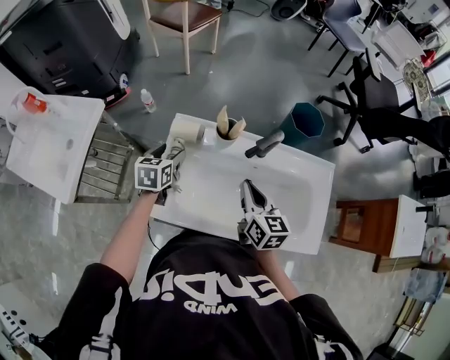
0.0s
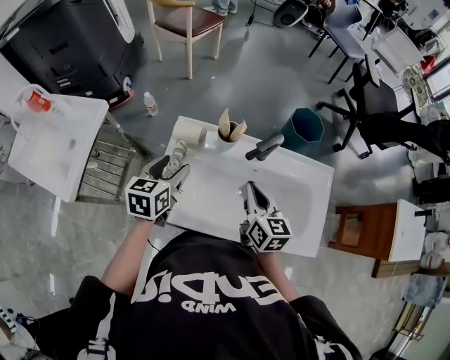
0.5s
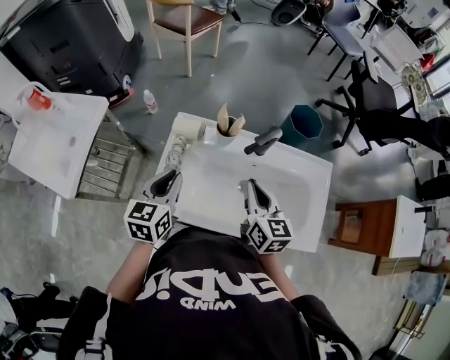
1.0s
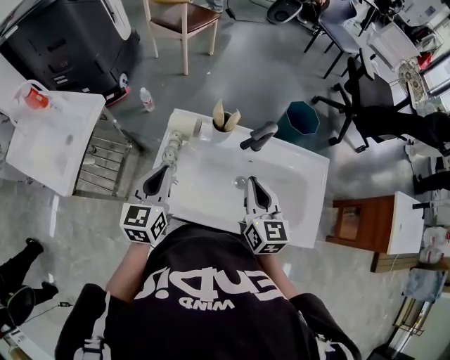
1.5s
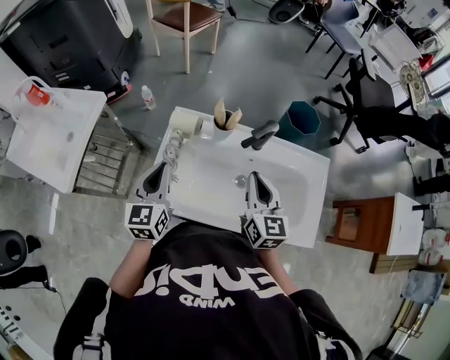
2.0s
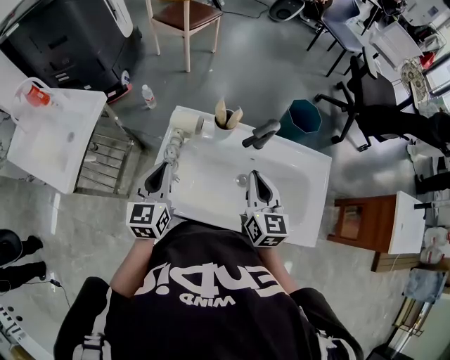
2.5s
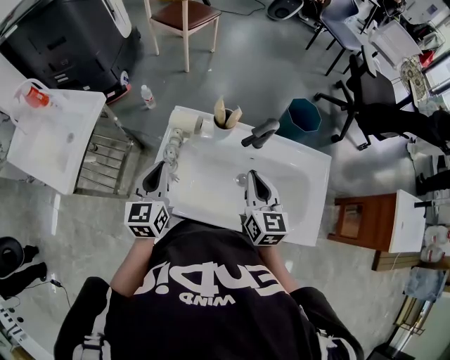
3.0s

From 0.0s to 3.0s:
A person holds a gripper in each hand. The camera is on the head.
From 0.0s to 1.5s: The right gripper shifts by some 5 cm. The left gripper travels upward and backward by about 15 cm, changes its angle by some 20 degrees, and closes its fingers.
From 1.5s to 3.0s: There are only small adjustments of the grippers.

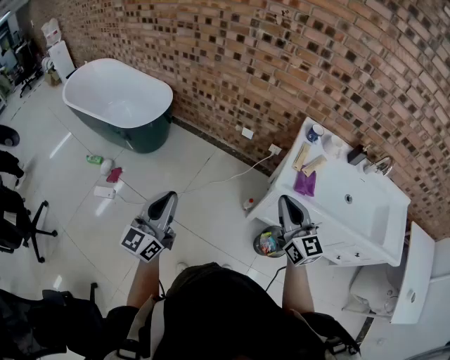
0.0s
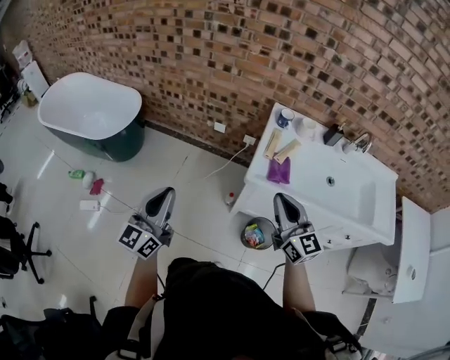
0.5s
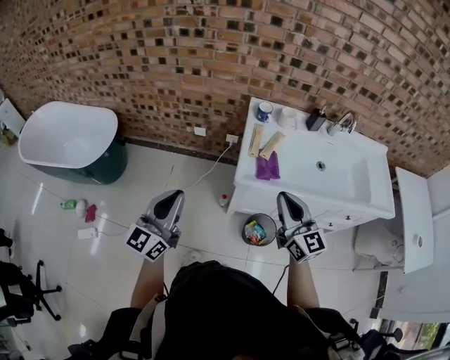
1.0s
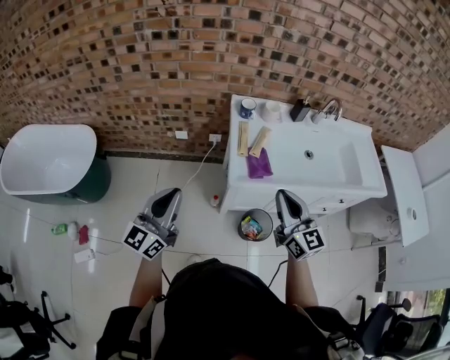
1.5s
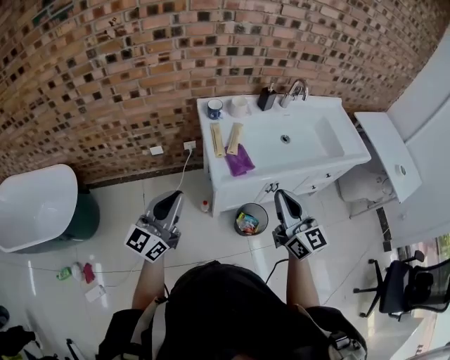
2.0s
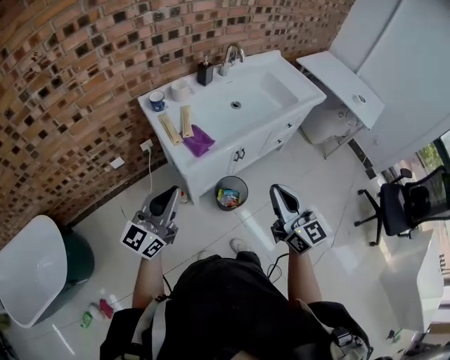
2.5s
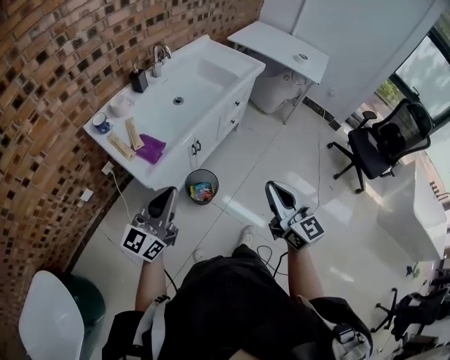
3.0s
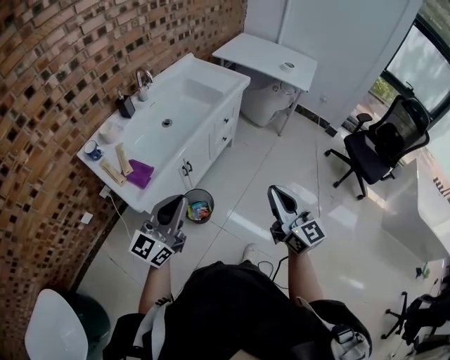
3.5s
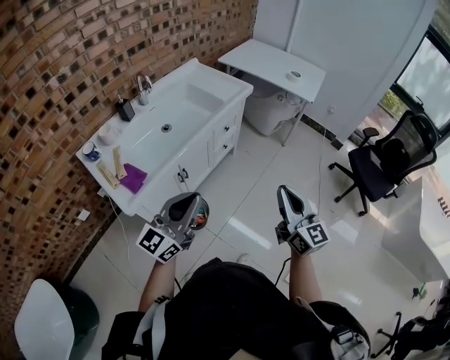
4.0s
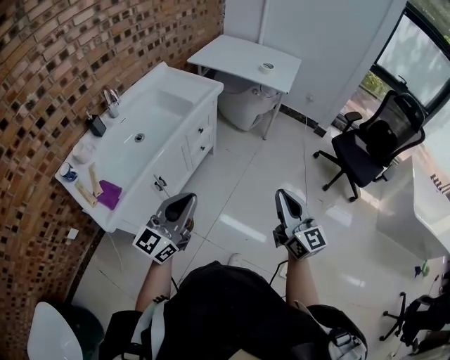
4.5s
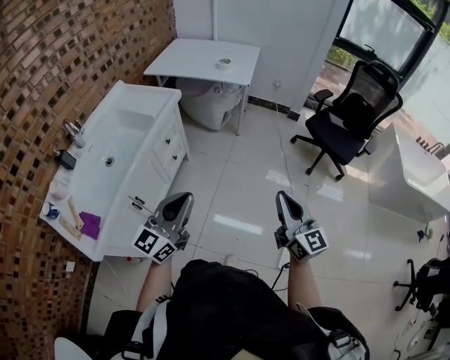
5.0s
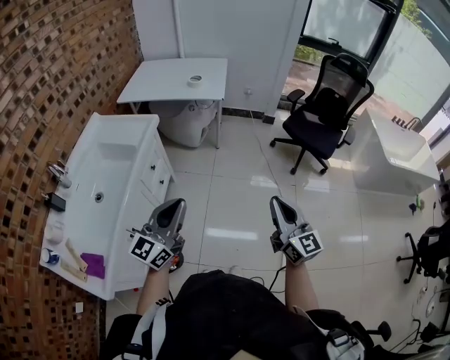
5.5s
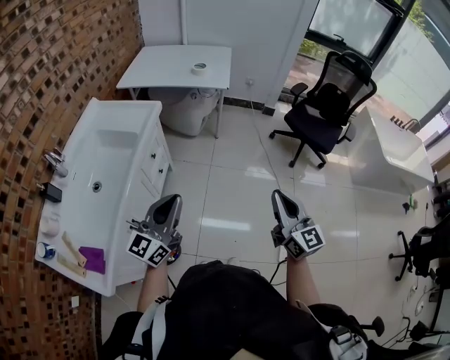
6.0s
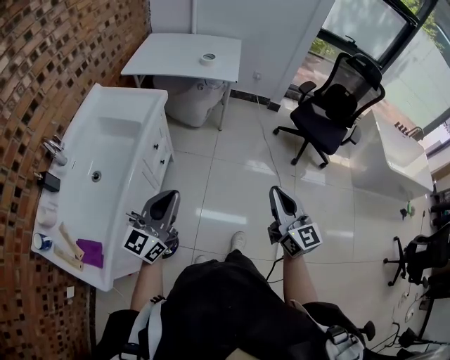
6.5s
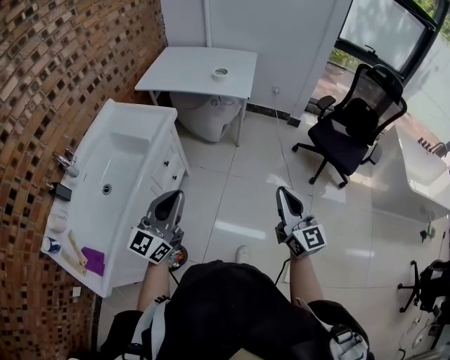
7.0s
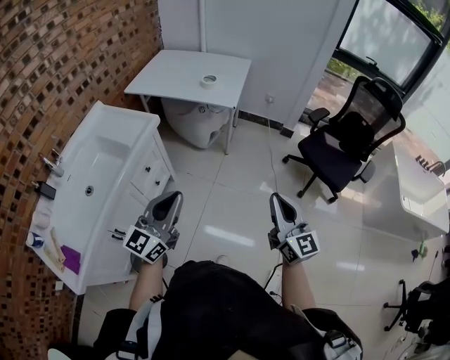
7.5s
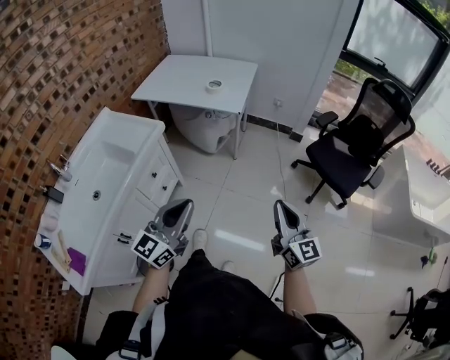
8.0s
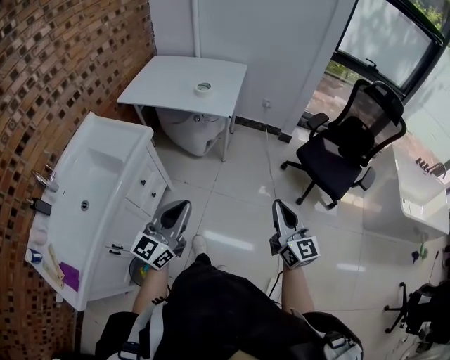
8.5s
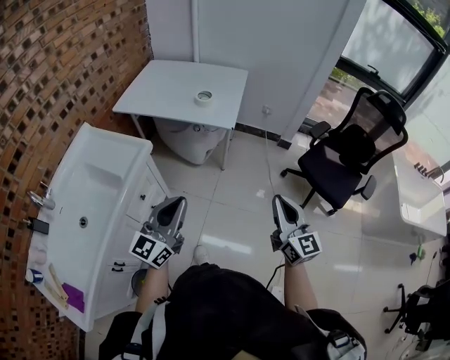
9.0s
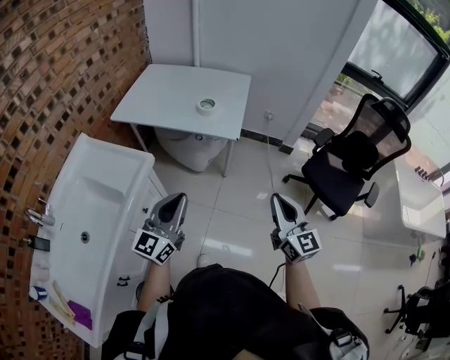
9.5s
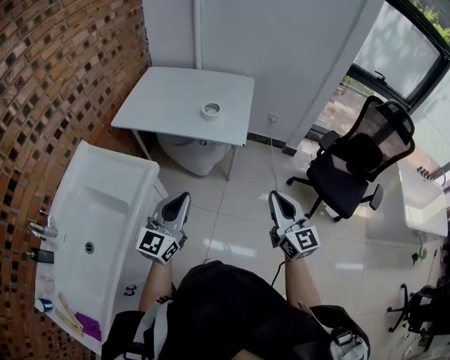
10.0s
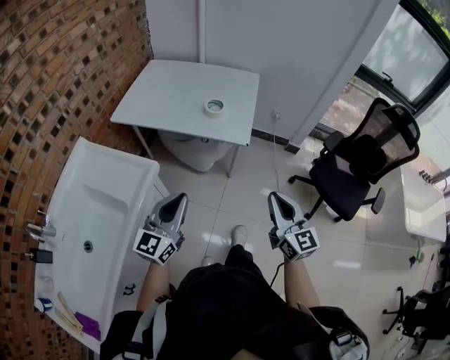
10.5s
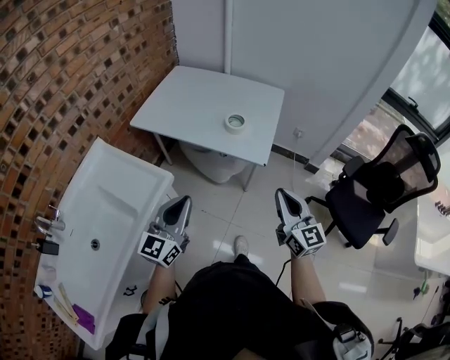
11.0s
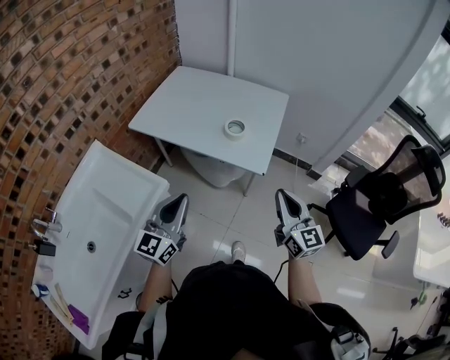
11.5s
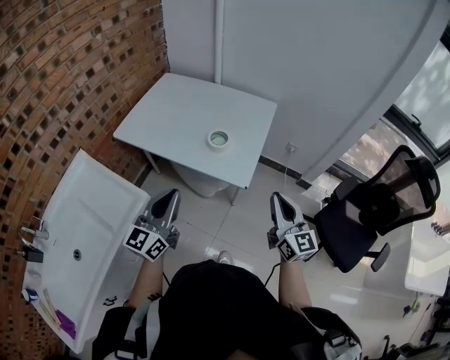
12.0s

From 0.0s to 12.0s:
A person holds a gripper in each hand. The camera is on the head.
From 0.0s to 2.0s: The right gripper moves approximately 15 cm, and swivels about 30 degrees, while the left gripper ends up approximately 25 cm from where it was, and rotates about 40 degrees.
From 2.0s to 4.0s: The left gripper moves approximately 35 cm, and turns by about 50 degrees; the right gripper moves approximately 35 cm, and turns by about 40 degrees.
From 4.0s to 6.0s: The right gripper ends up about 15 cm from where it was, and rotates roughly 30 degrees; the left gripper changes place by roughly 20 cm, and swivels approximately 20 degrees.
From 6.0s to 8.0s: The right gripper goes roughly 25 cm forward and to the right; the left gripper is displaced to the right and forward by some 20 cm.
From 8.0s to 10.0s: Both grippers travel together forward and to the left, about 30 cm.
From 10.0s to 12.0s: Both grippers travel together forward, roughly 20 cm.

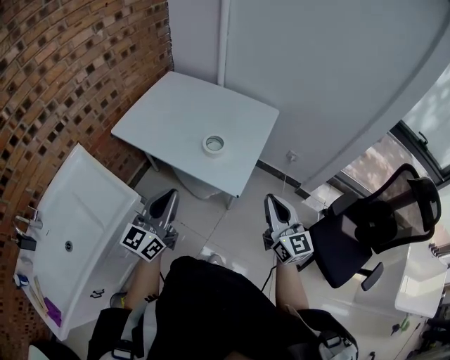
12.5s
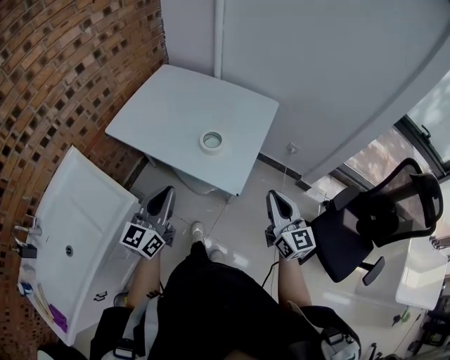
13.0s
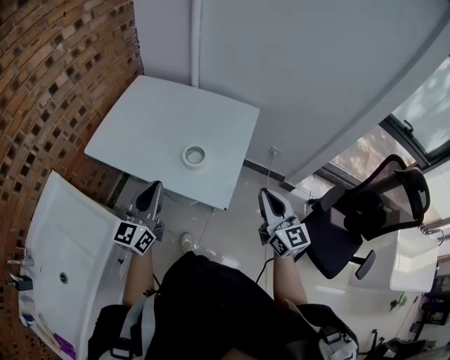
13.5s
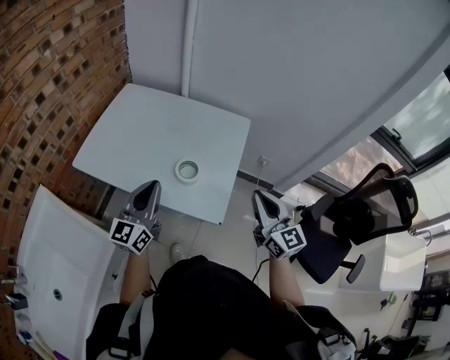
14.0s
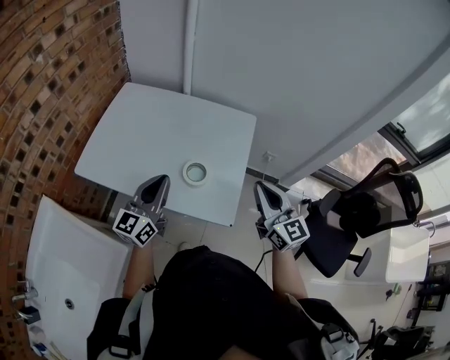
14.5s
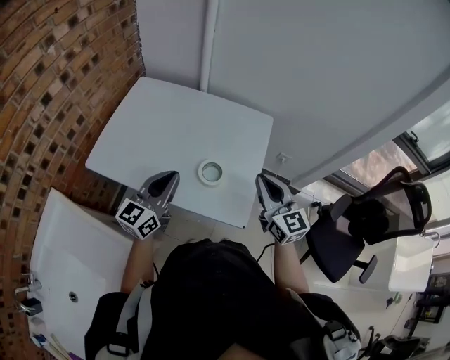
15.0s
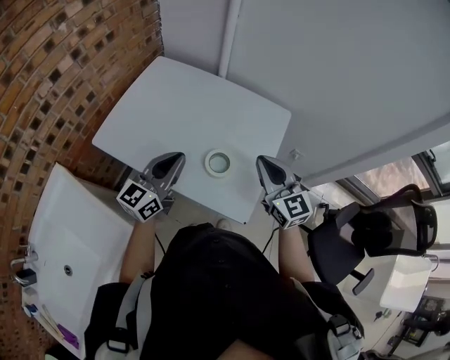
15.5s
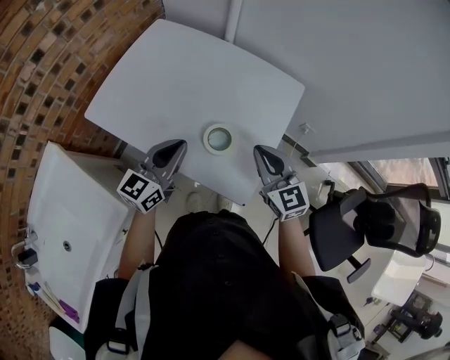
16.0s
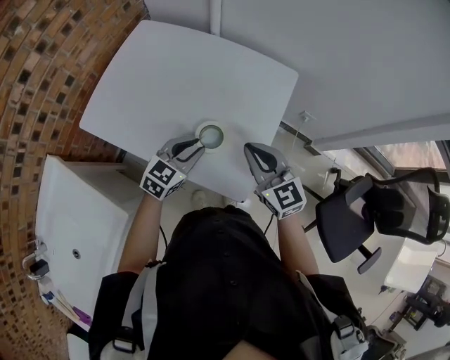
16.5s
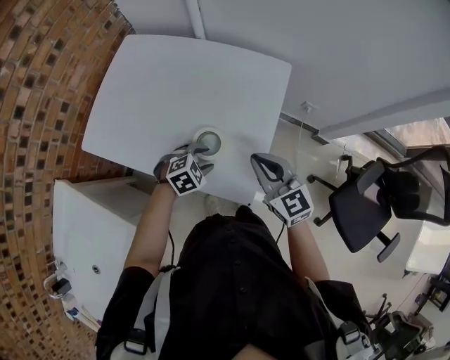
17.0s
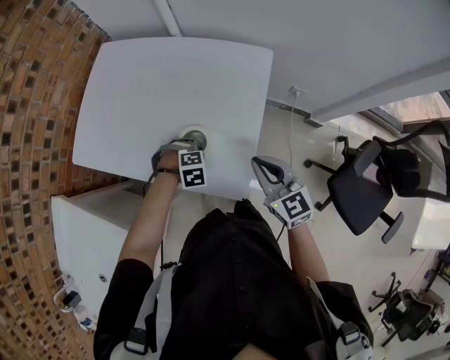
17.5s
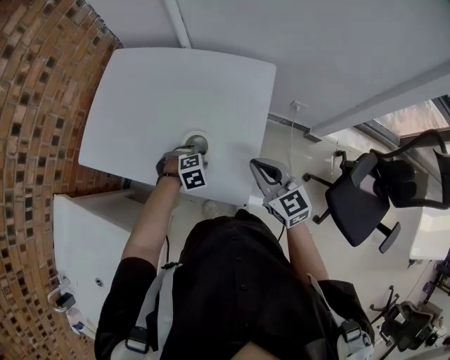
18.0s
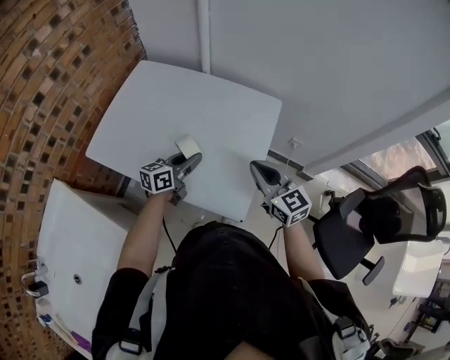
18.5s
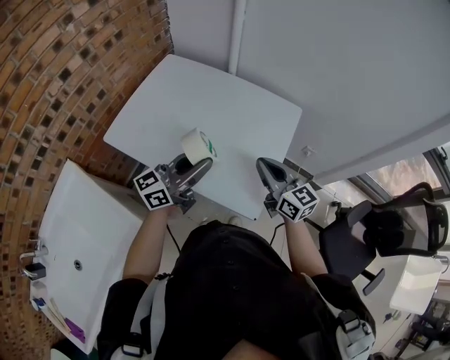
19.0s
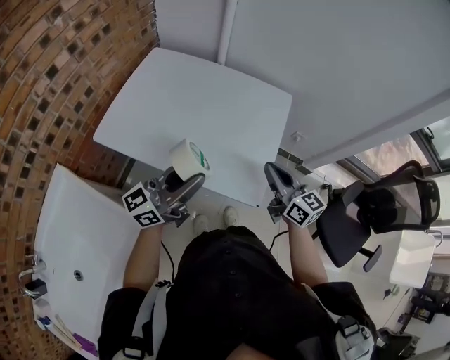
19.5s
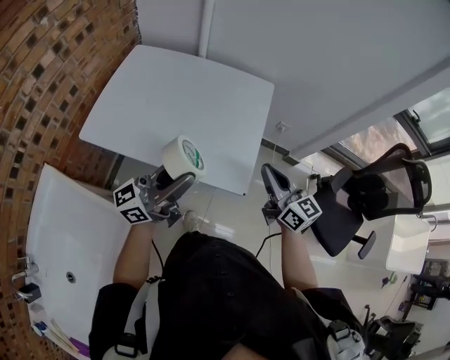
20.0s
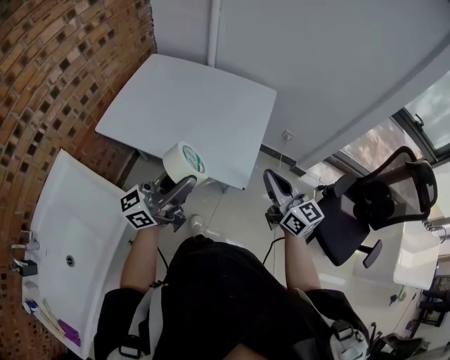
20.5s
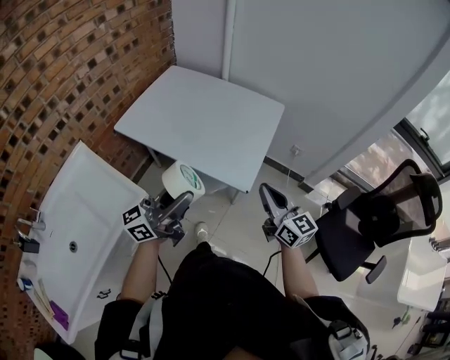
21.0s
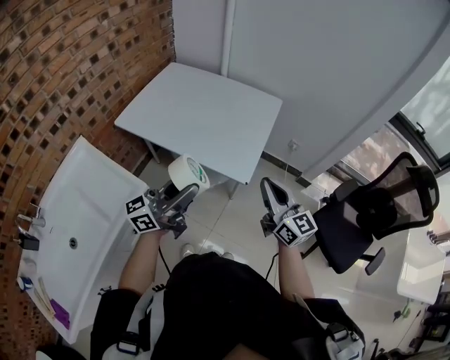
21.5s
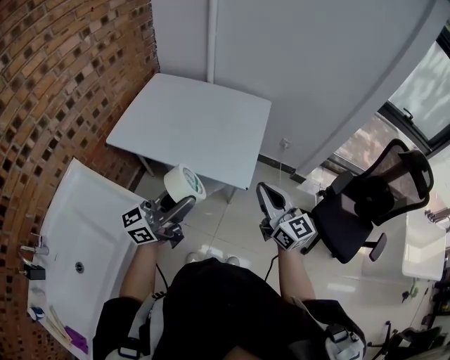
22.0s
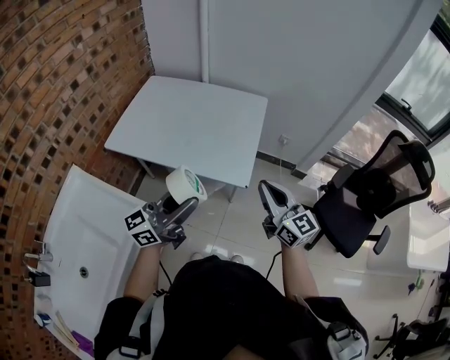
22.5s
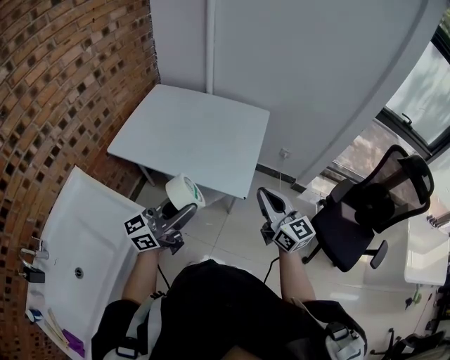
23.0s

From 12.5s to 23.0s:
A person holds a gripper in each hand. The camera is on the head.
From 12.5s to 14.5s: Both grippers travel together forward, roughly 20 cm.
From 14.5s to 16.5s: The right gripper moves downward, forward and to the left, approximately 15 cm, and turns by about 20 degrees. The left gripper is displaced downward and to the right by roughly 15 cm, tilts its fingers some 40 degrees downward, and opens up.
From 16.5s to 19.0s: The left gripper moves upward, approximately 15 cm, points its fingers about 40 degrees further upward, and opens, then closes once more.
From 19.0s to 21.0s: The left gripper is displaced backward by about 25 cm. Meanwhile the right gripper travels backward and to the right by approximately 25 cm.

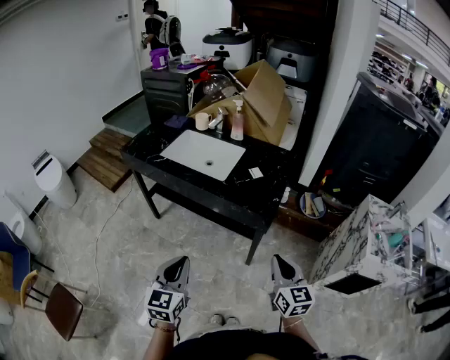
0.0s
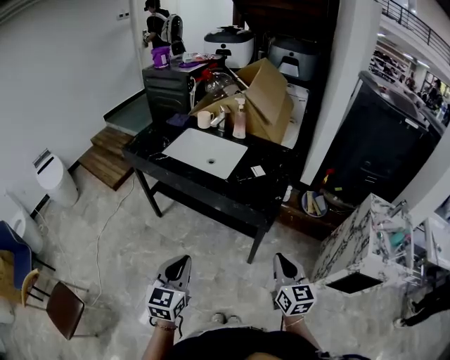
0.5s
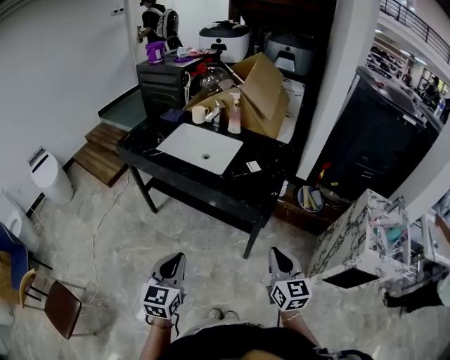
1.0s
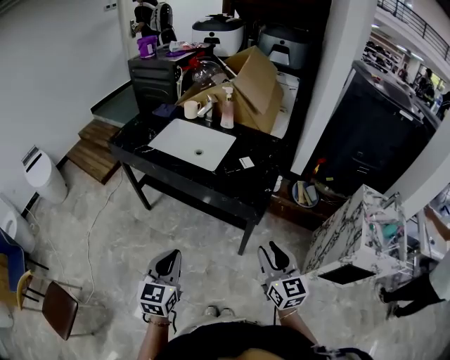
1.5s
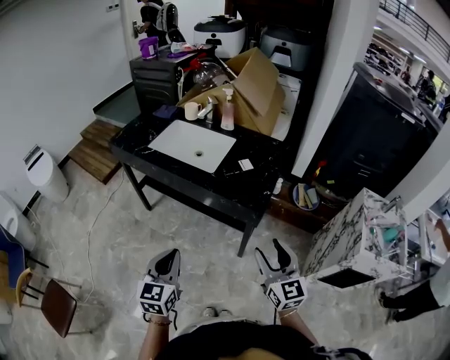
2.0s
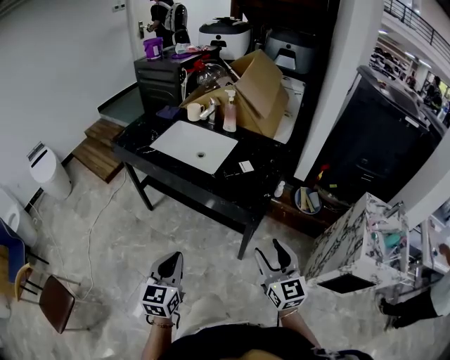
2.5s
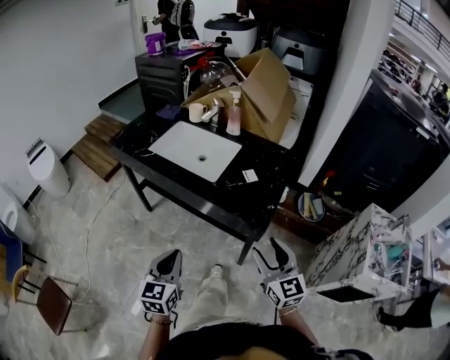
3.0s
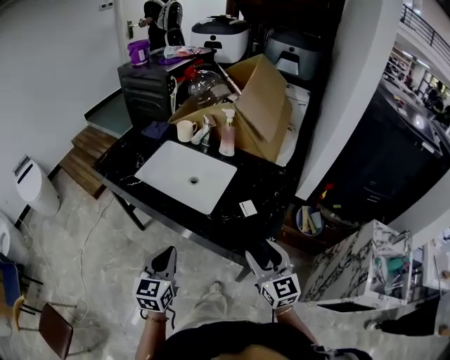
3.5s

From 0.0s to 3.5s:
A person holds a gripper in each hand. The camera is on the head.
From 0.0s to 2.0s: The right gripper opens up.
From 2.0s to 3.5s: The grippers both shift forward by approximately 25 cm.
